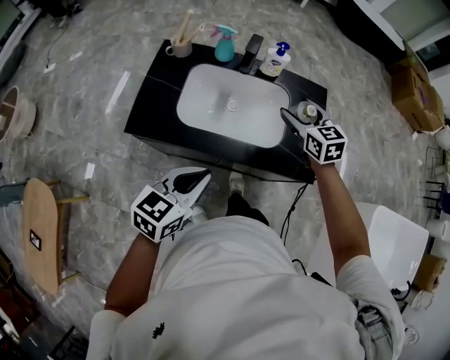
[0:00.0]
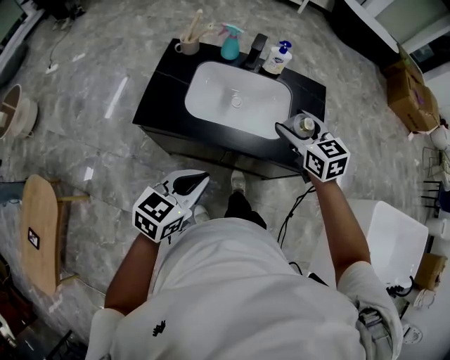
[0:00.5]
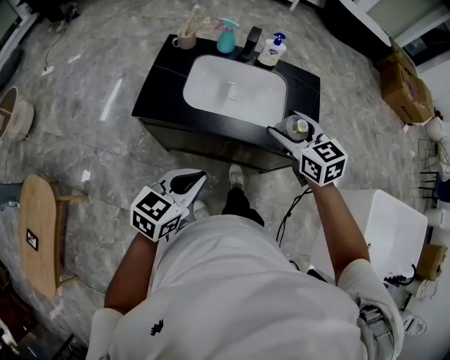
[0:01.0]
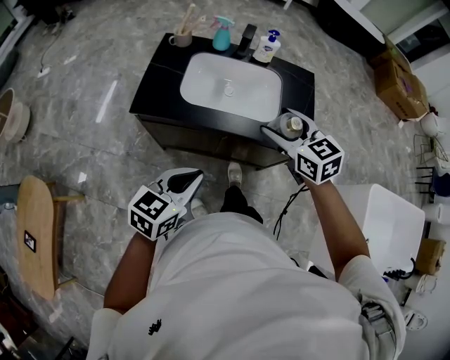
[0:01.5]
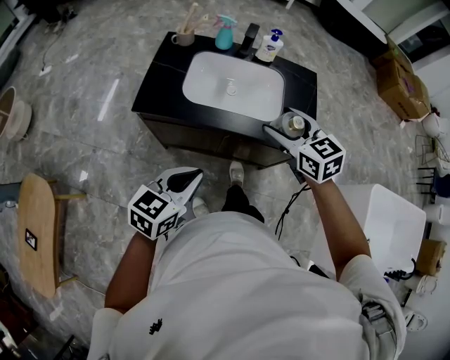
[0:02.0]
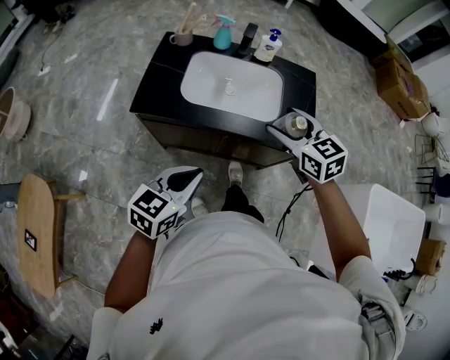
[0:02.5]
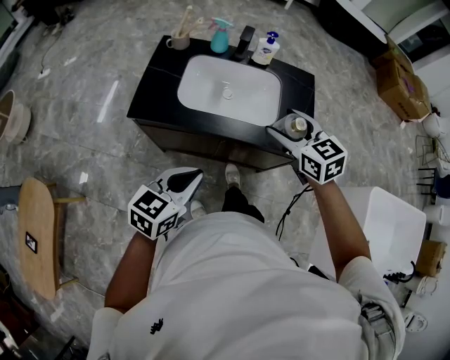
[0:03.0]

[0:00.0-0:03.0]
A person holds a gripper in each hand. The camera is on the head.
0:00.0 to 0:01.5: The right gripper moves backward, approximately 20 cm. Meanwhile the left gripper moves backward, approximately 15 cm.
0:01.5 to 0:03.0: The grippers make only small movements.

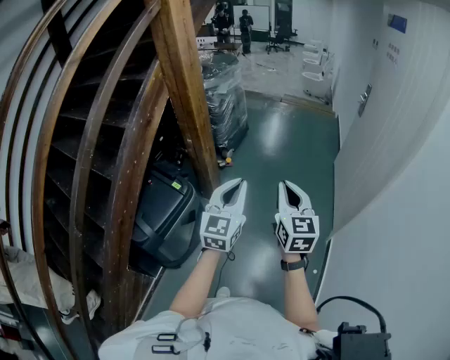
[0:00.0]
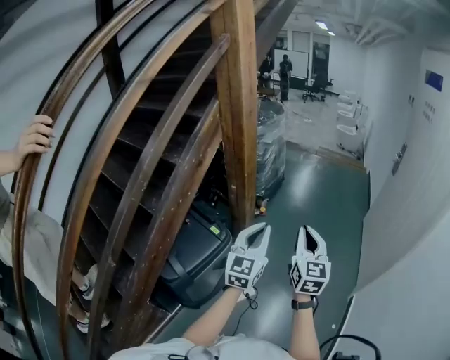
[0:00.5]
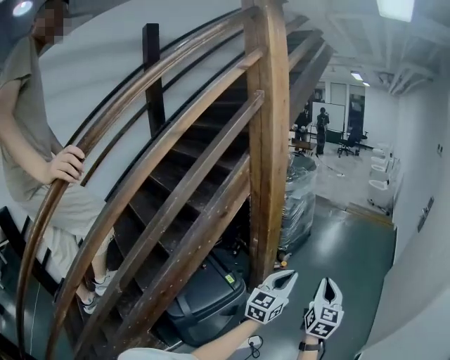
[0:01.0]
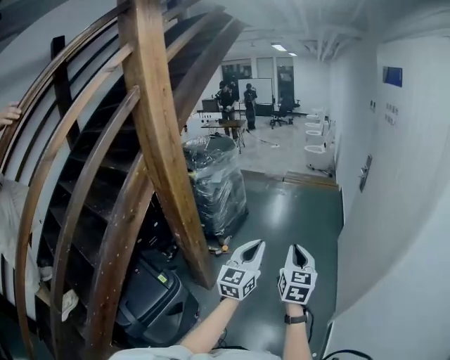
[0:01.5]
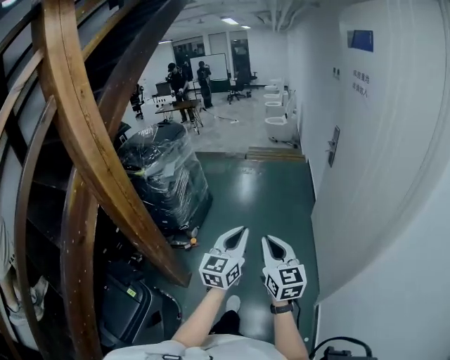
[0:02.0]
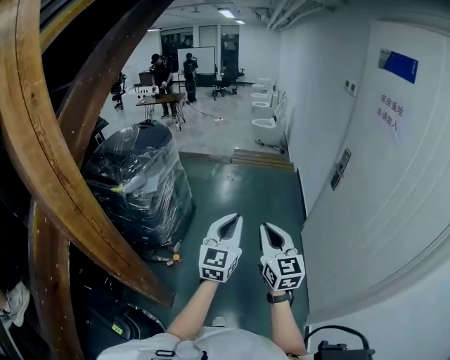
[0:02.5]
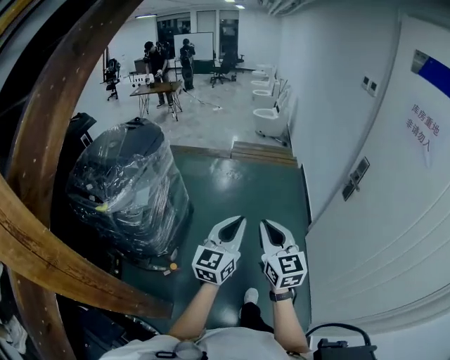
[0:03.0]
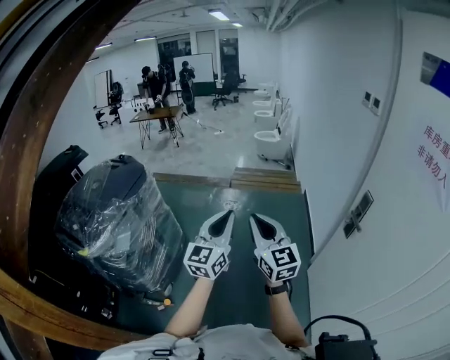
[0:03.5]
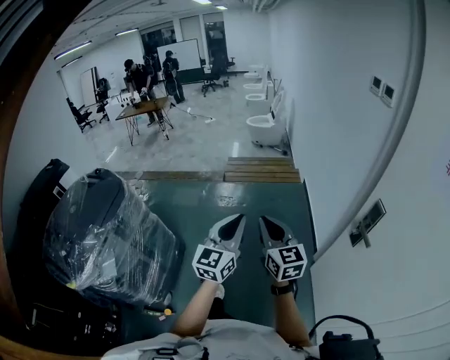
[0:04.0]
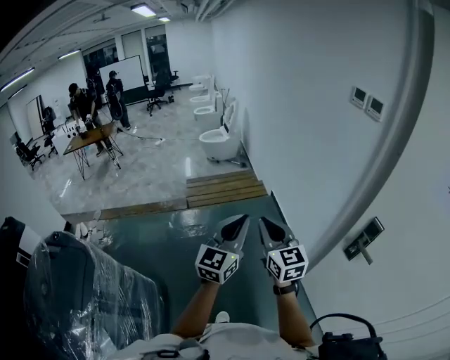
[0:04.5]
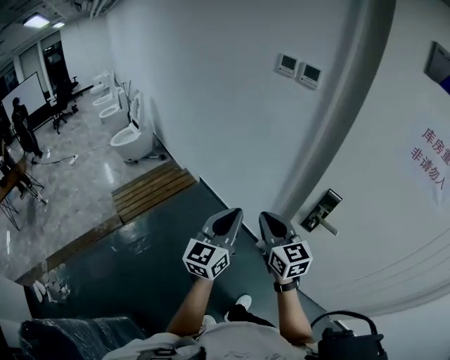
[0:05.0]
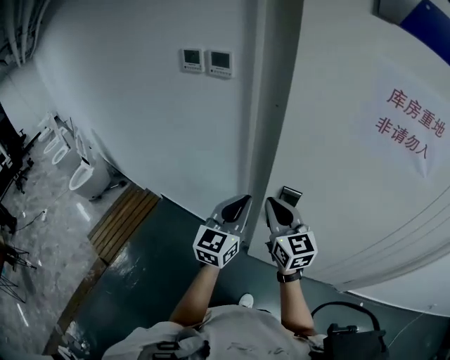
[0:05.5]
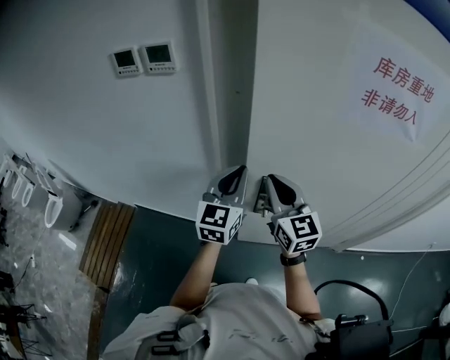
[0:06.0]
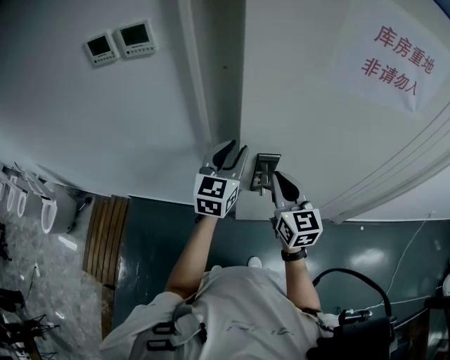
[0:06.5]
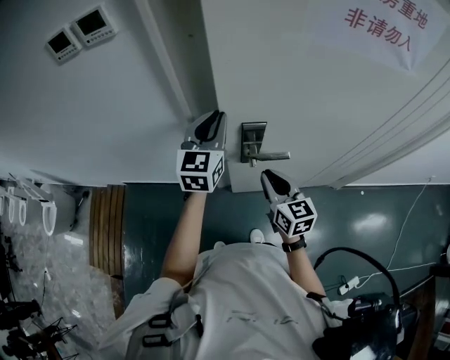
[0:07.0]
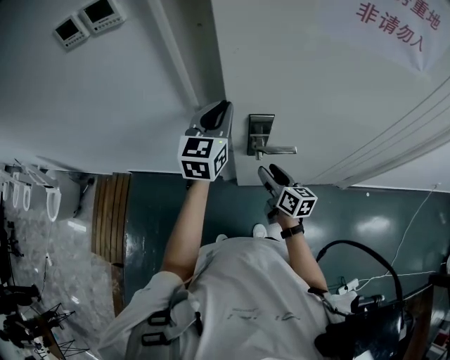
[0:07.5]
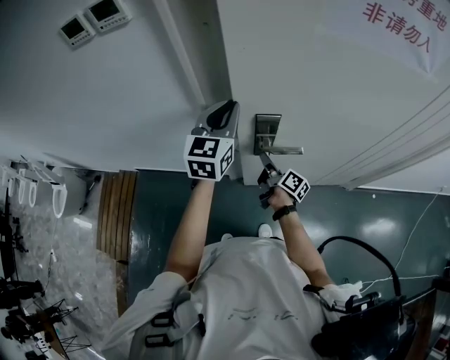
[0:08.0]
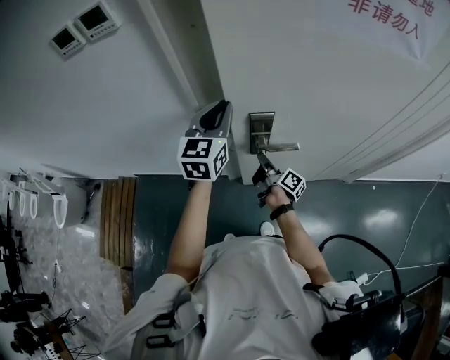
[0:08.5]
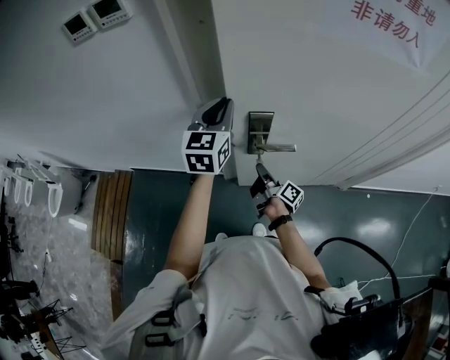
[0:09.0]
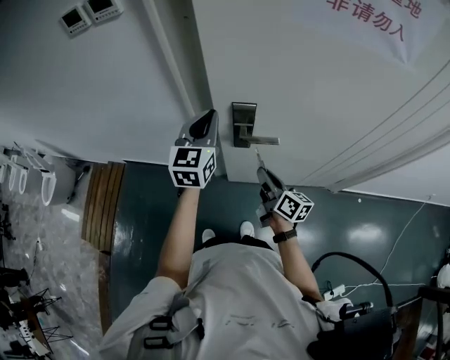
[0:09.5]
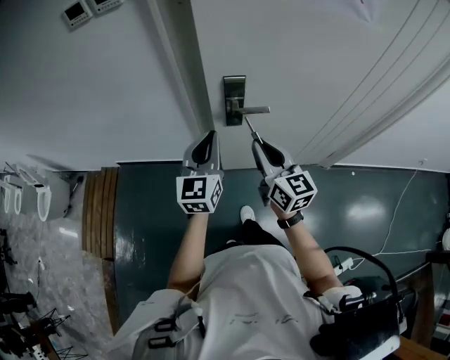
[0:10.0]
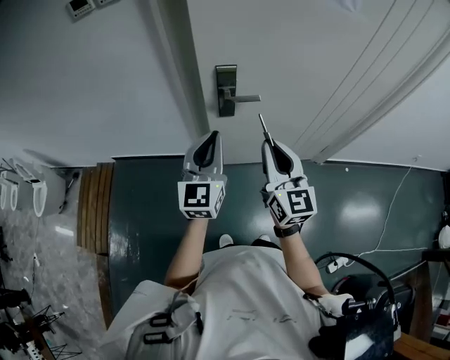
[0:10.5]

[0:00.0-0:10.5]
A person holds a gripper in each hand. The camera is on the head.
0:00.0 to 0:02.0: The grippers both shift forward and to the right by approximately 35 cm.
0:02.0 to 0:04.0: The two grippers travel together, forward, approximately 70 cm.
0:04.0 to 0:06.5: The pair of grippers is taken some 50 cm. The right gripper turns by approximately 90 degrees. The left gripper rotates about 80 degrees, and opens its fingers.
0:06.5 to 0:08.5: The right gripper is displaced downward by approximately 25 cm, rotates around the line of its fingers by roughly 80 degrees, clockwise from behind, and opens, then closes again, while the left gripper closes up.
0:08.5 to 0:10.5: The right gripper is displaced upward and backward by about 35 cm, and rolls counterclockwise, seen from behind, by approximately 80 degrees. Meanwhile the left gripper heads backward, covering about 25 cm.

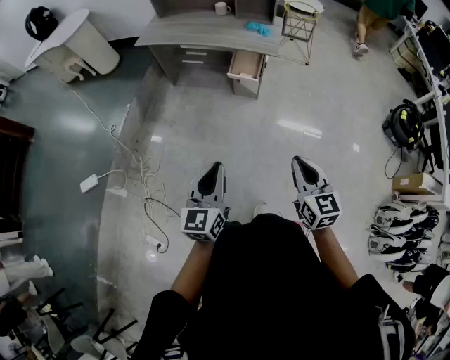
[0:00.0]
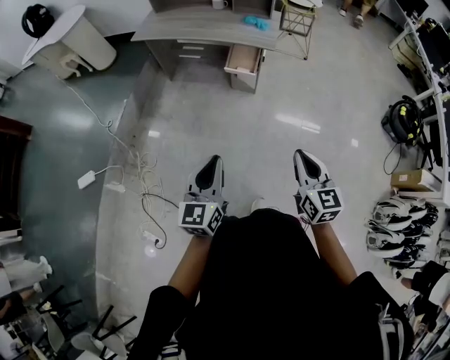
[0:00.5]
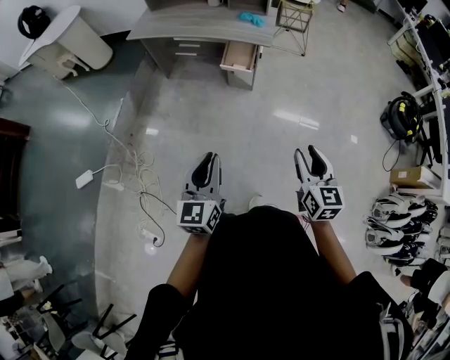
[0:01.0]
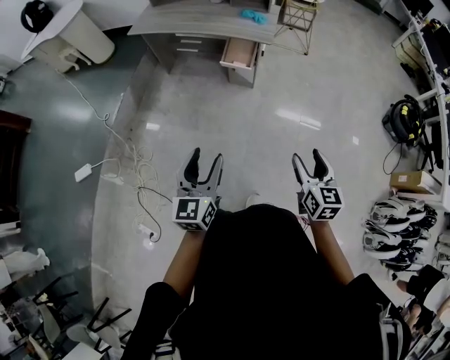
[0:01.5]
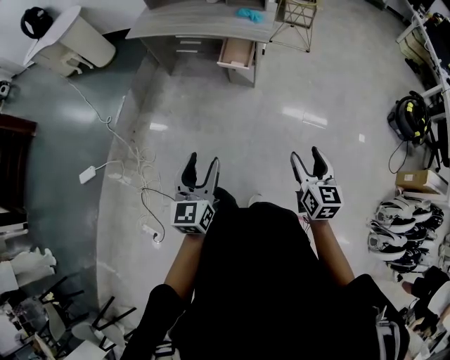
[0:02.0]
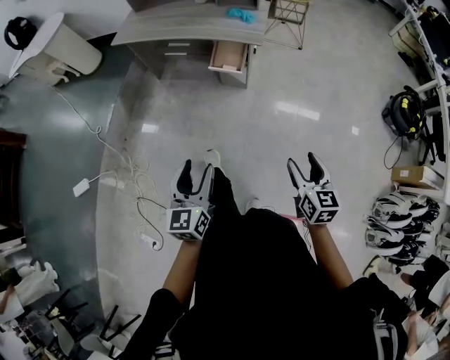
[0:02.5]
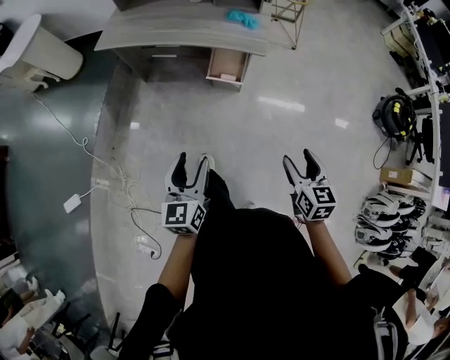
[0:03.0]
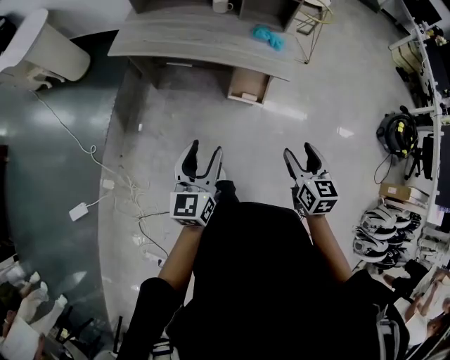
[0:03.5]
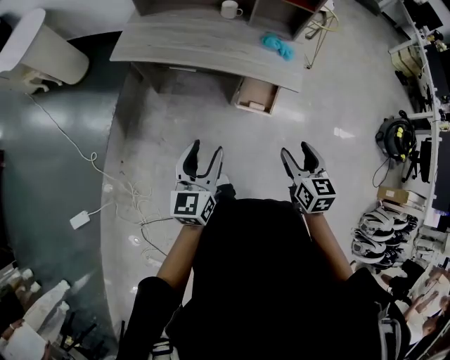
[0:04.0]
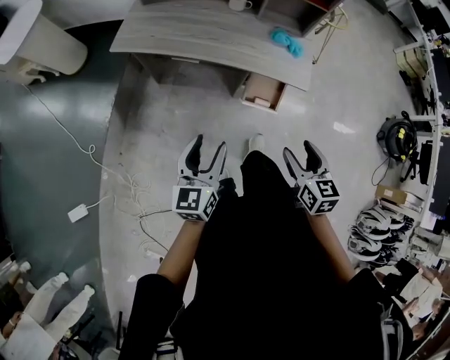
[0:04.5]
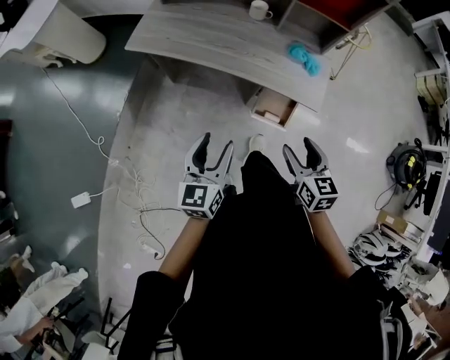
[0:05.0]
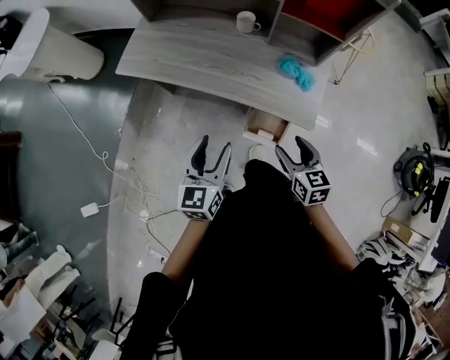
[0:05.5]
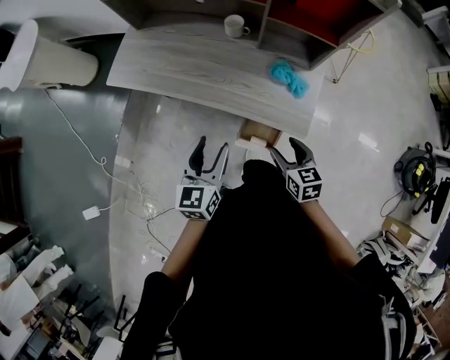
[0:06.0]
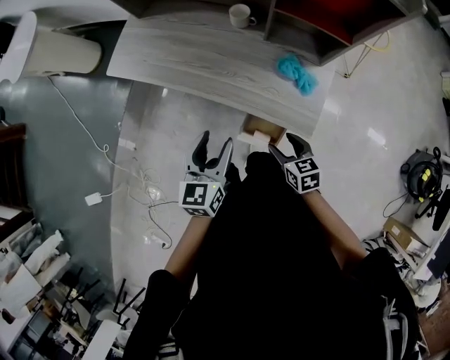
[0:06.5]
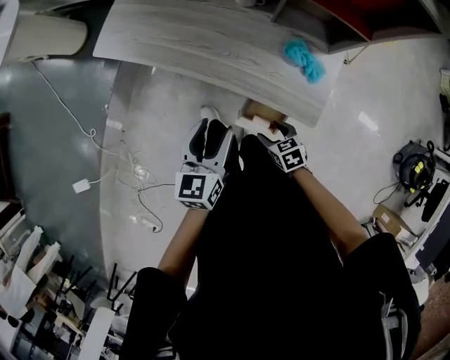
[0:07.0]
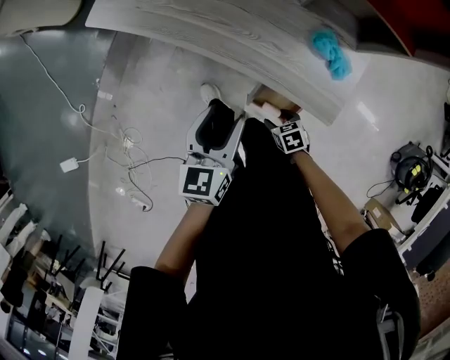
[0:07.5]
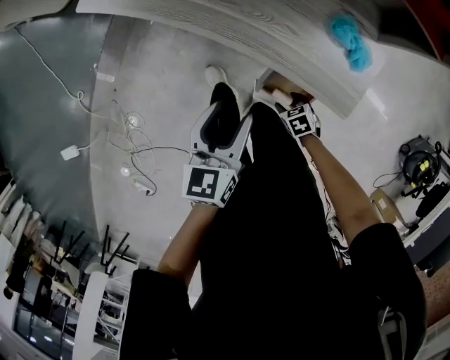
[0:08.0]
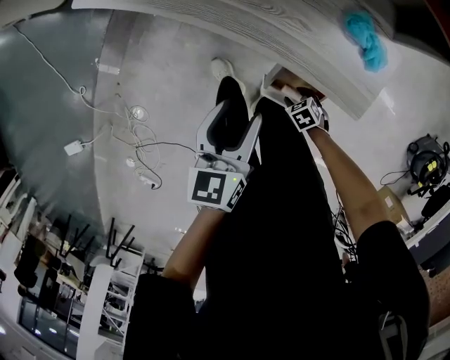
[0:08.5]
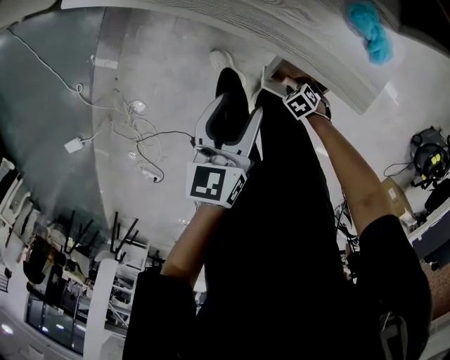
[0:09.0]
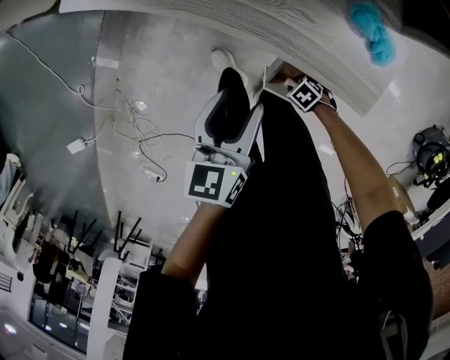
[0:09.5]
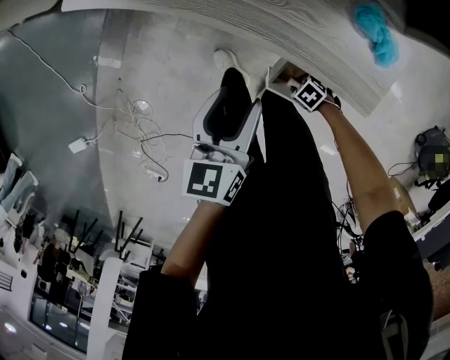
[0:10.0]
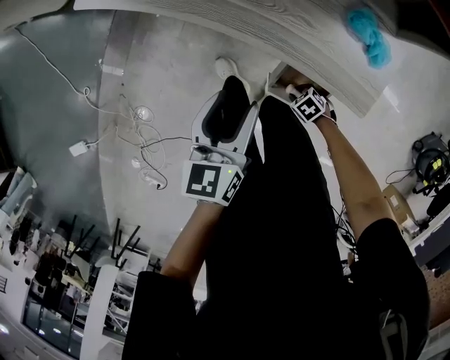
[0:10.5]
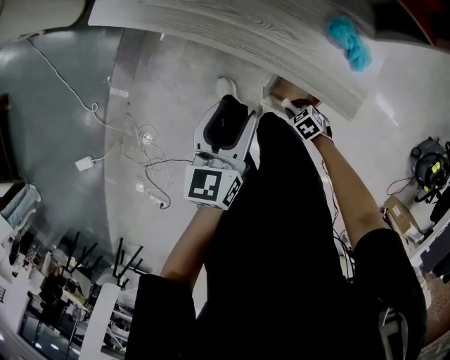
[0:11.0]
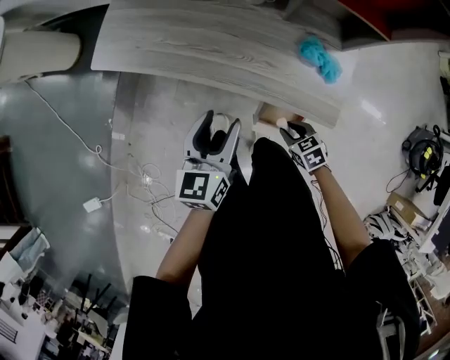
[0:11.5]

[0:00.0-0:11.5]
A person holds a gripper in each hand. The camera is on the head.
0:00.0 to 0:02.0: The left gripper moves to the right, approximately 5 cm, and opens up, while the right gripper is displaced to the right and downward by approximately 15 cm, and opens its fingers.
0:02.0 to 0:04.0: The two grippers travel together, forward and to the left, about 50 cm.
0:04.0 to 0:06.0: The right gripper travels forward by roughly 30 cm. The left gripper goes roughly 30 cm forward and to the right.
0:06.0 to 0:07.5: The right gripper is displaced downward by about 30 cm, and swivels some 40 degrees. The left gripper goes about 15 cm downward and forward.
0:07.5 to 0:09.5: The left gripper is displaced downward by roughly 5 cm, while the right gripper shifts about 15 cm downward, rotates about 30 degrees, and closes up.
0:09.5 to 0:11.5: The right gripper heads upward, covering about 25 cm, and swivels some 40 degrees, while the left gripper heads upward, covering about 10 cm.

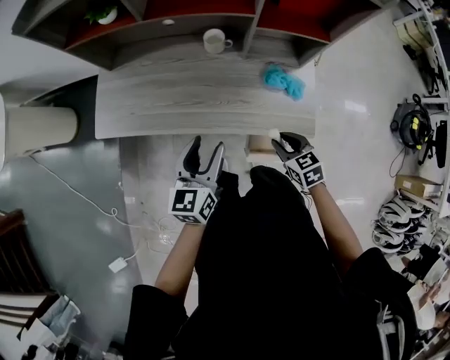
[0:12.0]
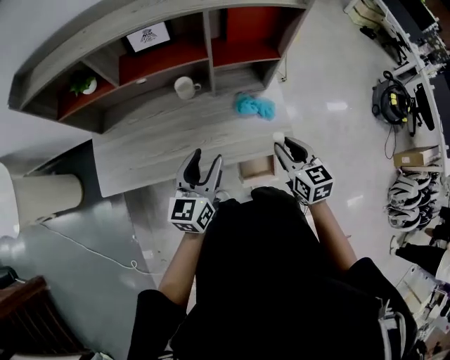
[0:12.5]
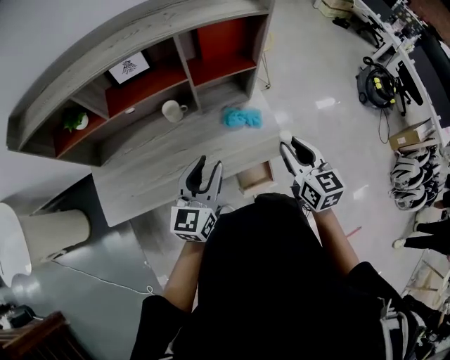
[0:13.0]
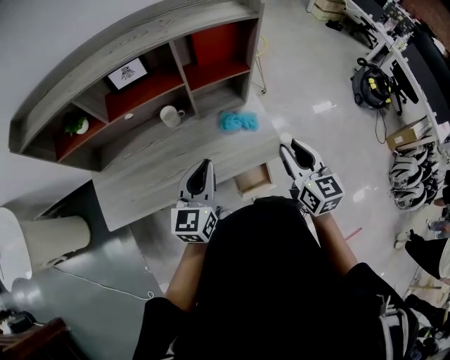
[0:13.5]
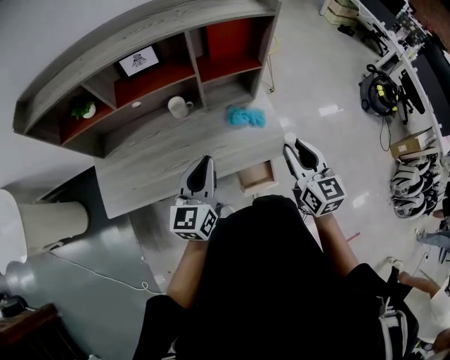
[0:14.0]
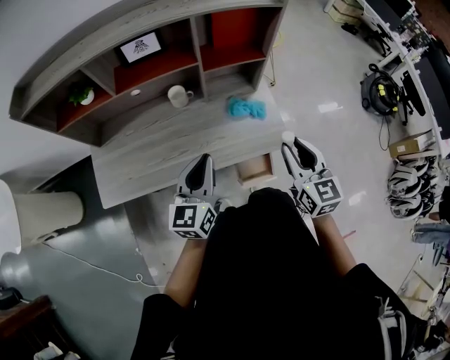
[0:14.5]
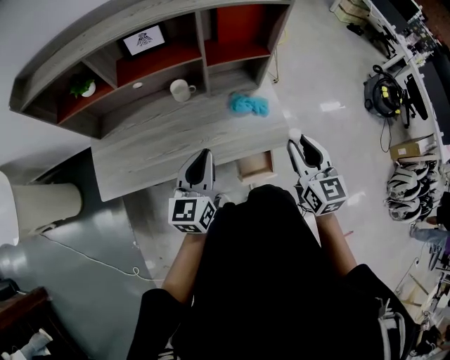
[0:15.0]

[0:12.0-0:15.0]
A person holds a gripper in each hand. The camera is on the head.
0:12.0 to 0:13.5: The right gripper moves upward, about 25 cm, and tips its fingers upward by about 30 degrees. The left gripper moves upward, about 10 cm, turns by about 30 degrees, and closes up.
0:13.5 to 0:15.0: The grippers move only a little.
